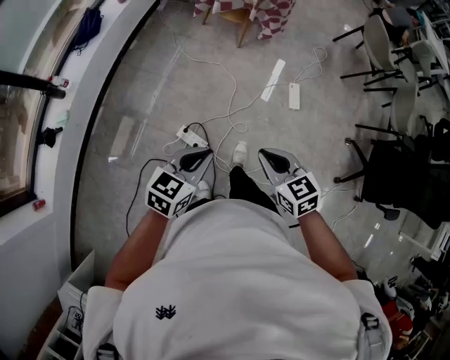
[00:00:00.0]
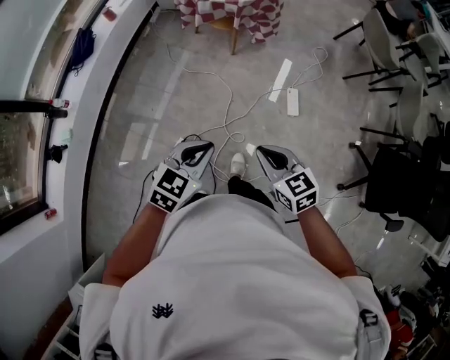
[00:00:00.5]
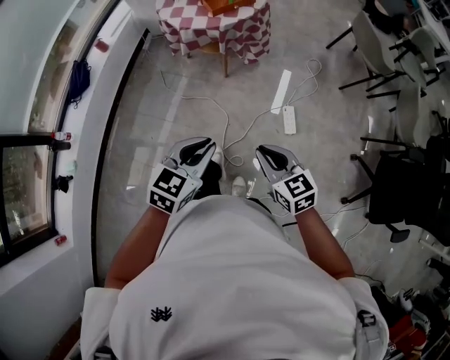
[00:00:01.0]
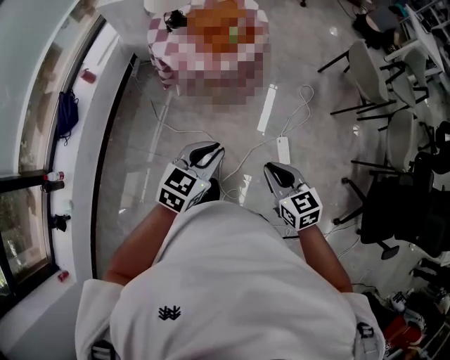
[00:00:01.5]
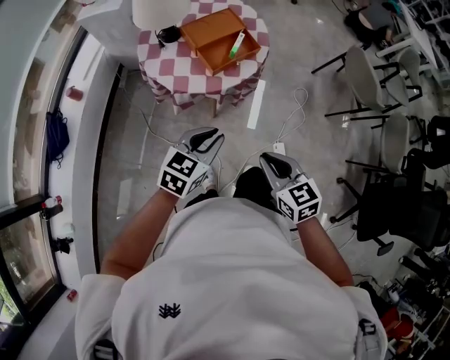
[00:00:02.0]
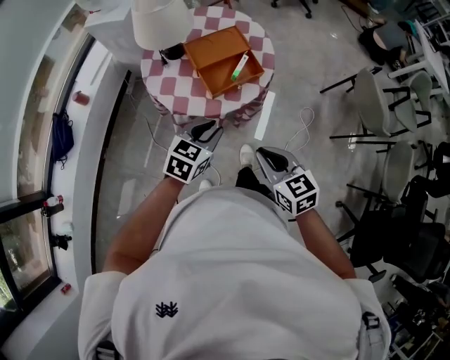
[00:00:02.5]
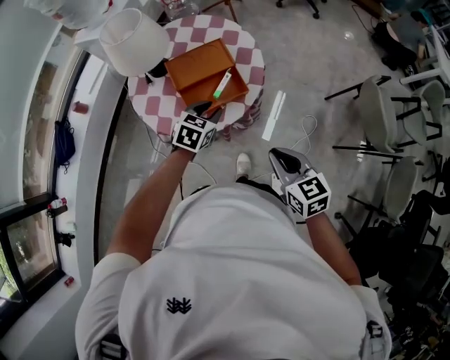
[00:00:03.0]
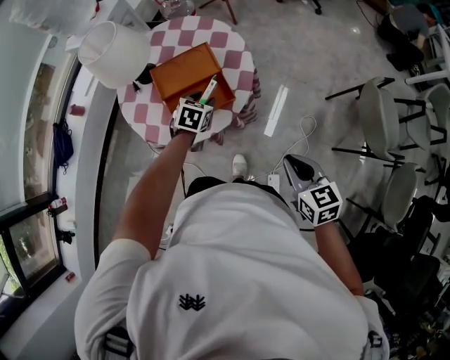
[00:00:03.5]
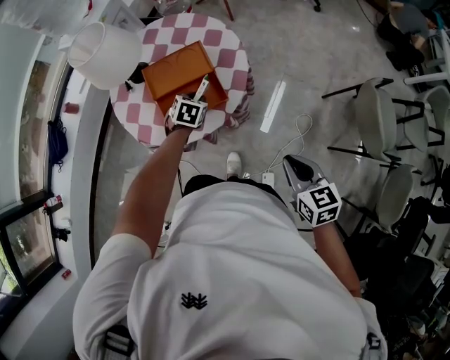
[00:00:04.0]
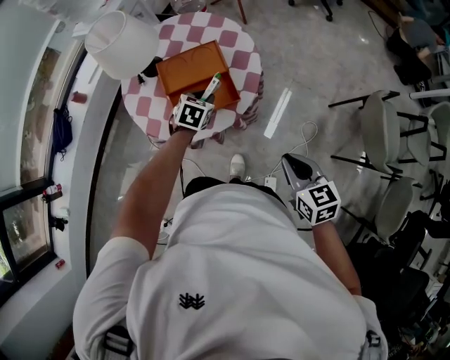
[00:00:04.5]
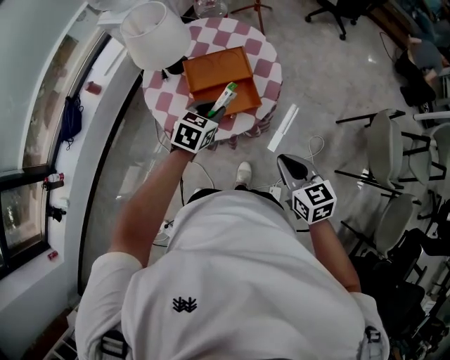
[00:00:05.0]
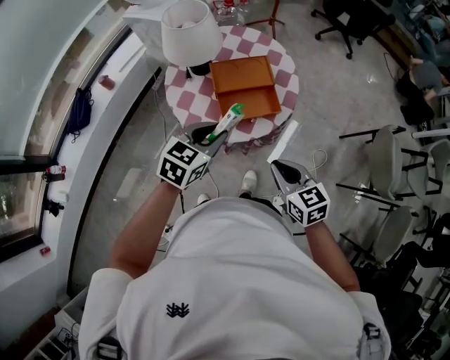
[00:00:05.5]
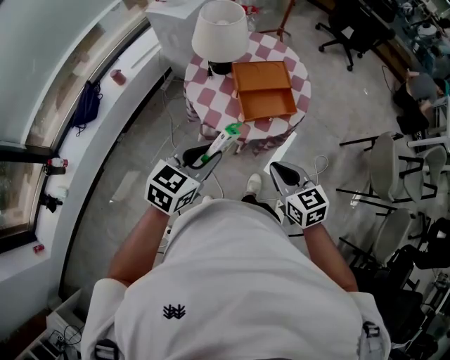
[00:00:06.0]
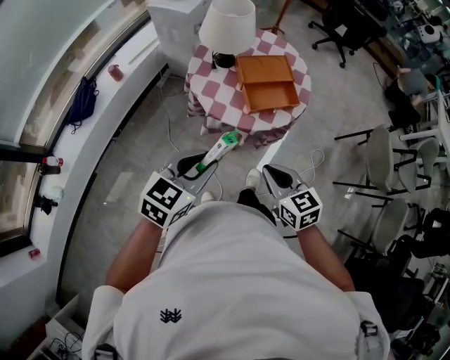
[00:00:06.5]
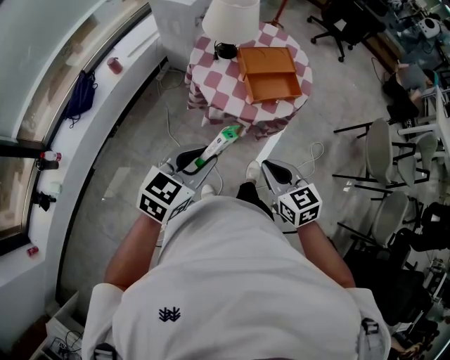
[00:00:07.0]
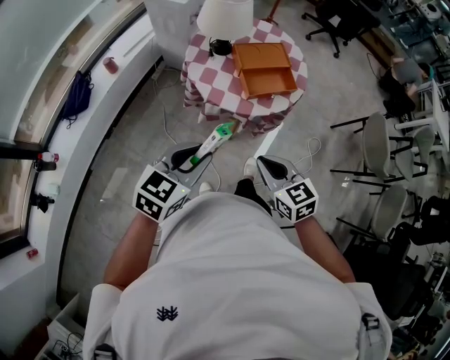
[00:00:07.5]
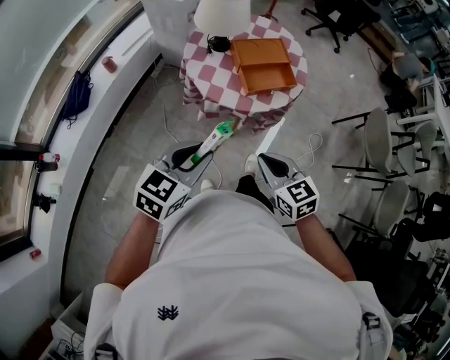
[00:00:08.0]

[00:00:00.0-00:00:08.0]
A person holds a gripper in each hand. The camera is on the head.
00:00:00.0 to 00:00:02.0: Both grippers are carried forward, roughly 60 cm.
00:00:02.0 to 00:00:04.0: The left gripper heads forward and downward, covering some 40 cm, and turns by some 40 degrees, while the right gripper moves to the right and forward, about 40 cm.
00:00:04.0 to 00:00:06.0: The right gripper goes about 30 cm to the left. Meanwhile the left gripper moves backward, upward and to the left, roughly 40 cm, and changes its angle by about 30 degrees.
00:00:06.0 to 00:00:08.0: Both grippers move backward and to the left, roughly 10 cm.

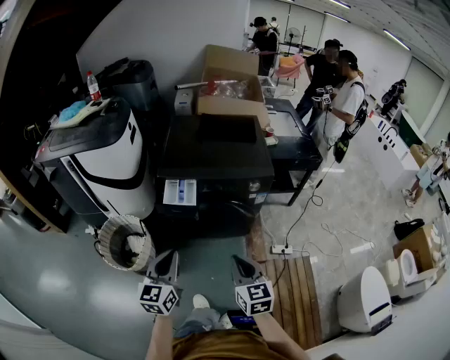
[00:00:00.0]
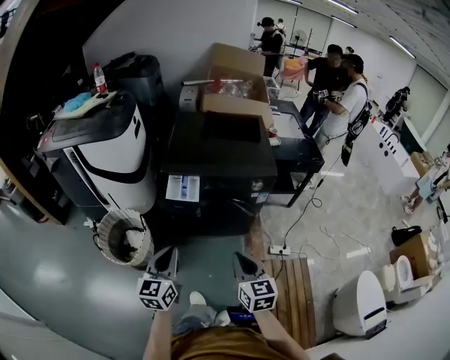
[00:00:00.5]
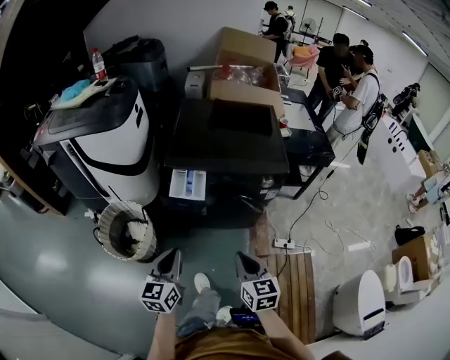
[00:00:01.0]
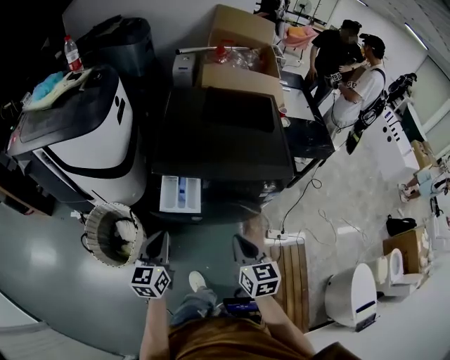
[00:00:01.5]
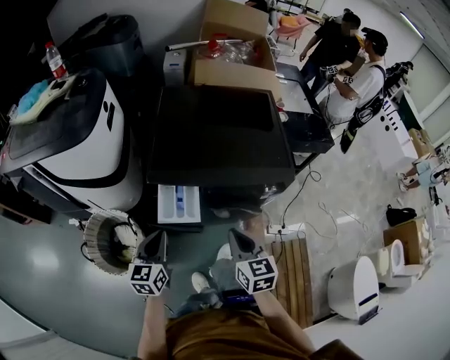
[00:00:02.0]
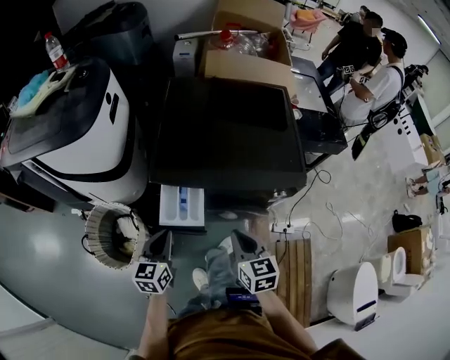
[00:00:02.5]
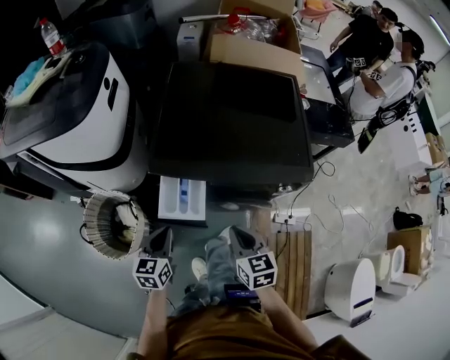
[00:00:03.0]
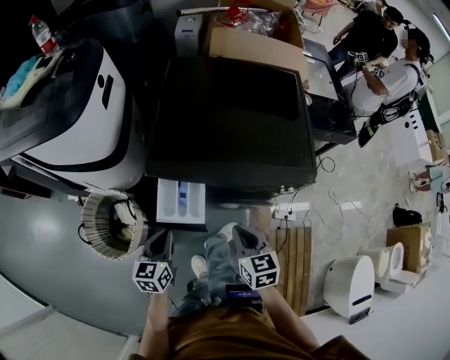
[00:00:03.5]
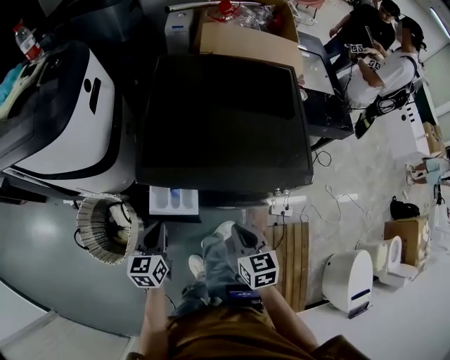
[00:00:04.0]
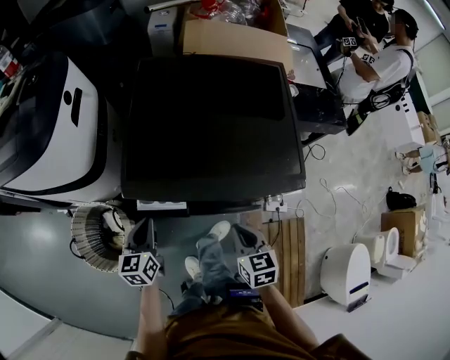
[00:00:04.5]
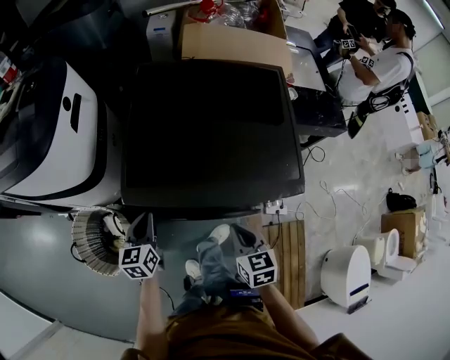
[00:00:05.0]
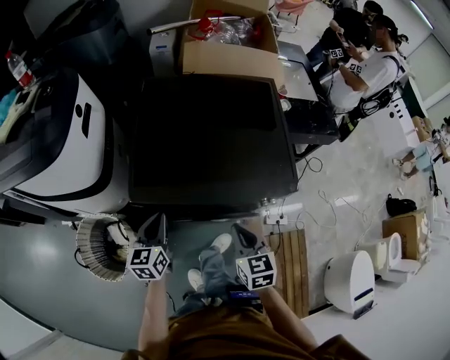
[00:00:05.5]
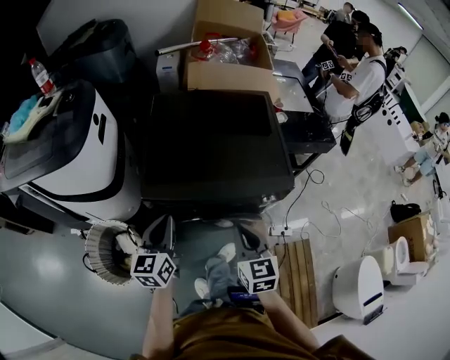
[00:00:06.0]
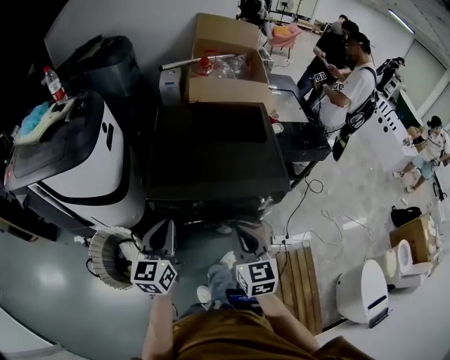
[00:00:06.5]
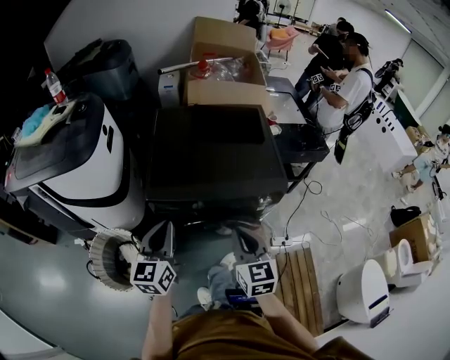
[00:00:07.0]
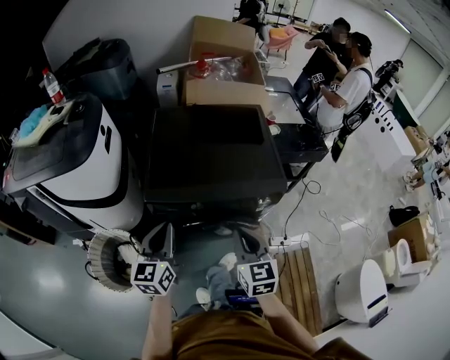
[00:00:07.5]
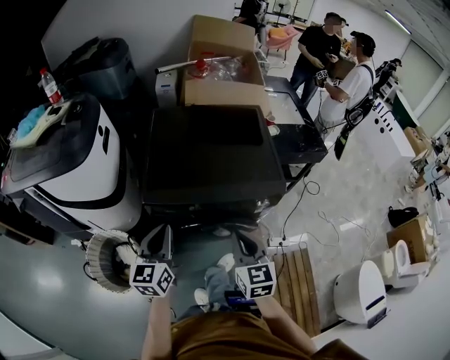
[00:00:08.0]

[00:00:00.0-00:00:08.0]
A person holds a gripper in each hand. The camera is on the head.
00:00:00.0 to 00:00:02.0: The right gripper is displaced forward by roughly 25 cm; the left gripper shifts about 25 cm forward and downward.
00:00:02.0 to 00:00:04.0: Both grippers travel together downward and forward, roughly 10 cm.
00:00:04.0 to 00:00:06.0: The grippers both shift upward by some 10 cm.
00:00:06.0 to 00:00:08.0: The left gripper changes place by roughly 5 cm.

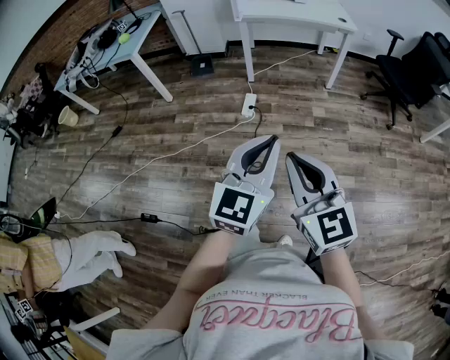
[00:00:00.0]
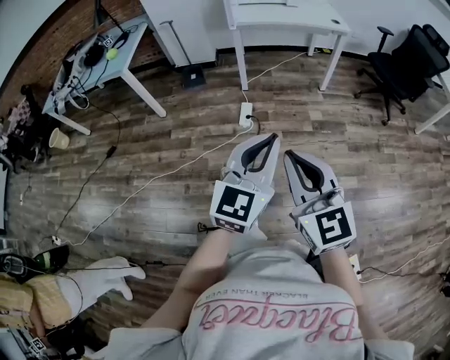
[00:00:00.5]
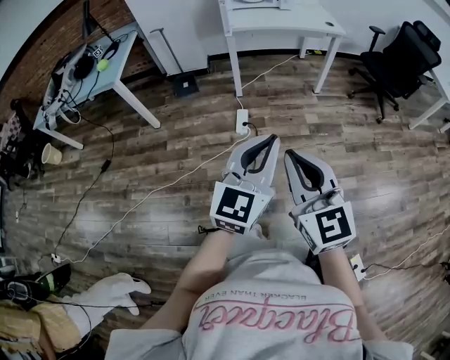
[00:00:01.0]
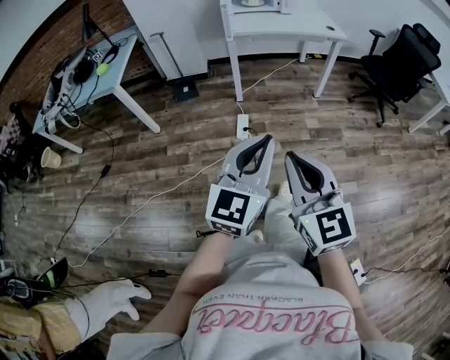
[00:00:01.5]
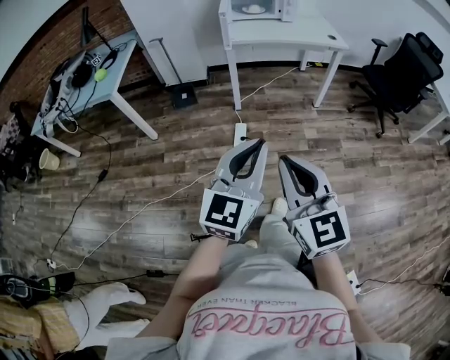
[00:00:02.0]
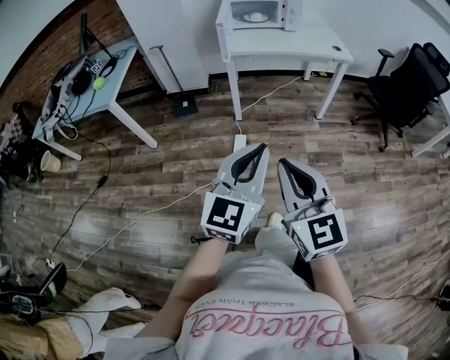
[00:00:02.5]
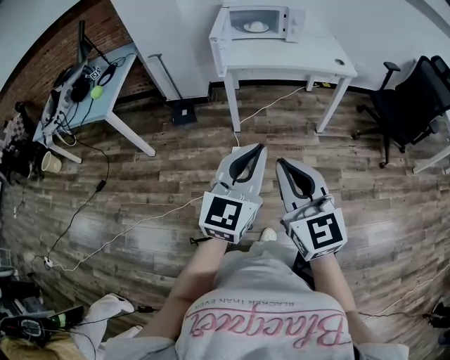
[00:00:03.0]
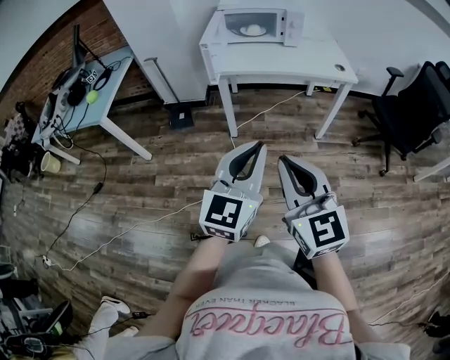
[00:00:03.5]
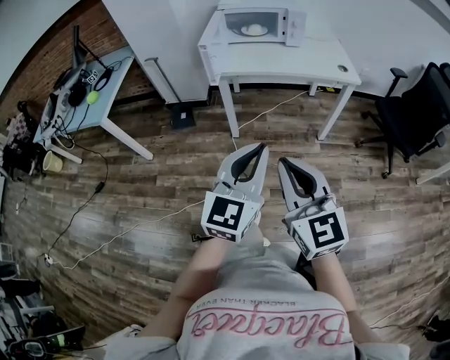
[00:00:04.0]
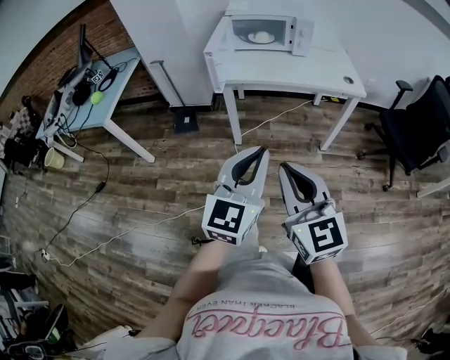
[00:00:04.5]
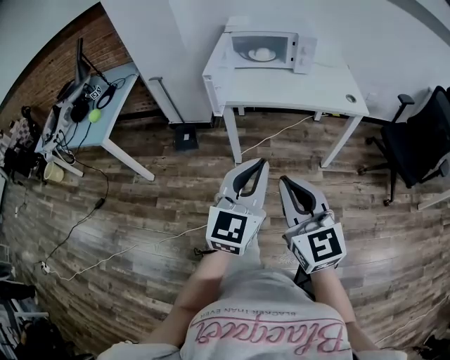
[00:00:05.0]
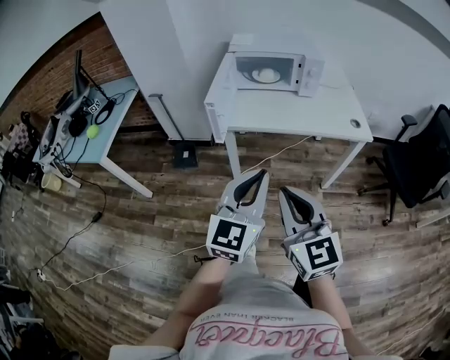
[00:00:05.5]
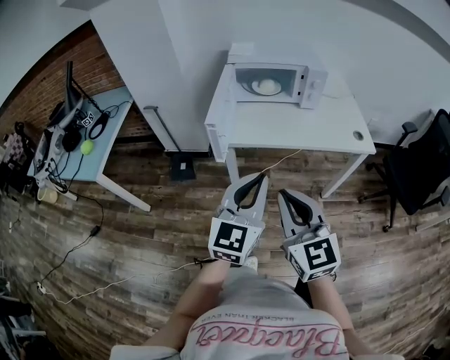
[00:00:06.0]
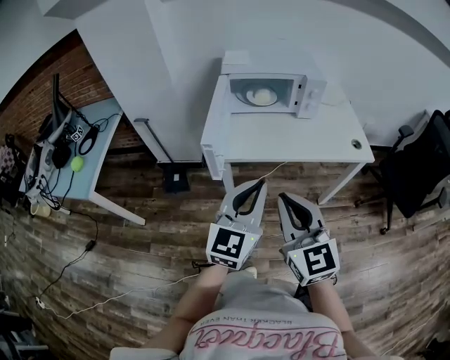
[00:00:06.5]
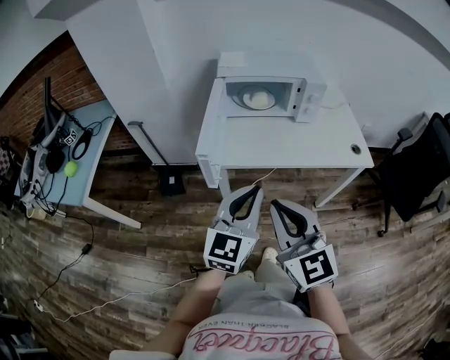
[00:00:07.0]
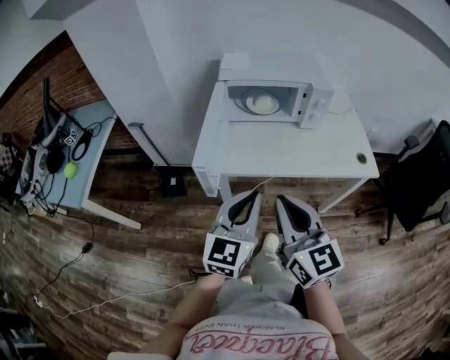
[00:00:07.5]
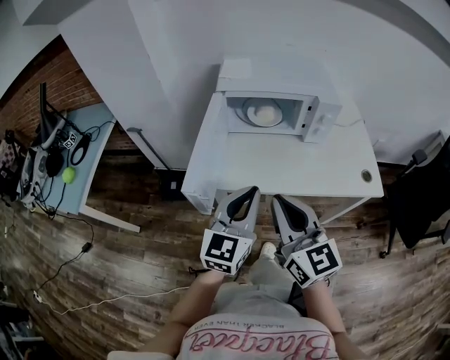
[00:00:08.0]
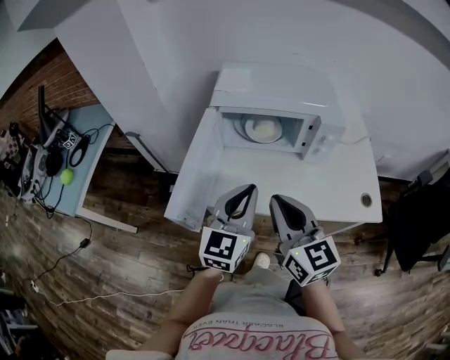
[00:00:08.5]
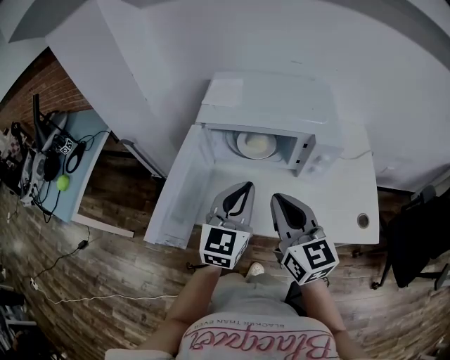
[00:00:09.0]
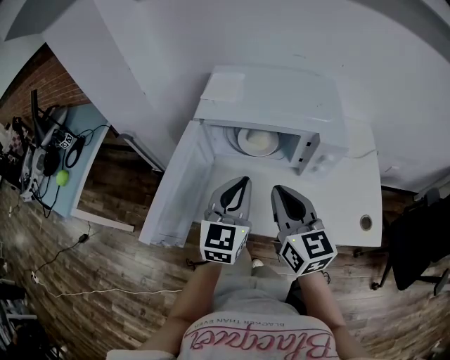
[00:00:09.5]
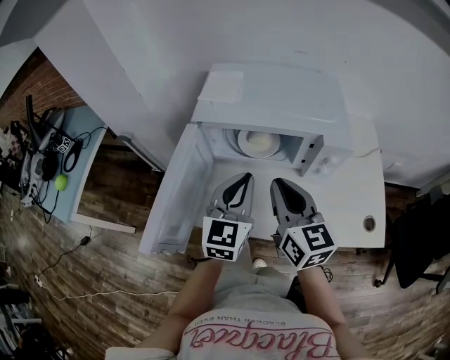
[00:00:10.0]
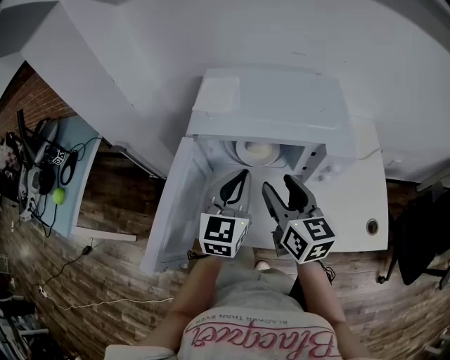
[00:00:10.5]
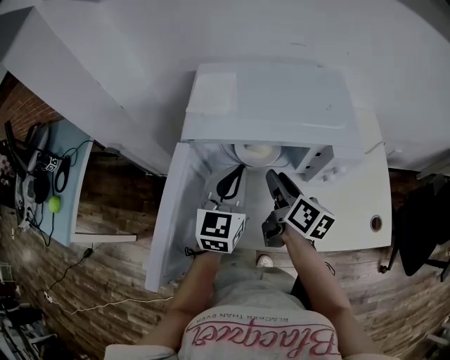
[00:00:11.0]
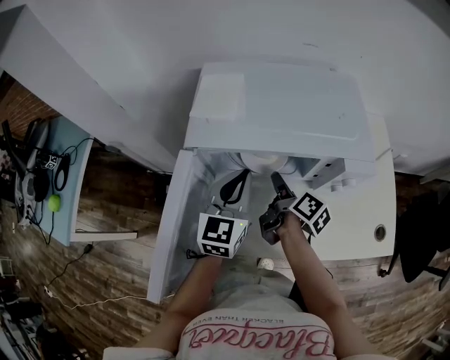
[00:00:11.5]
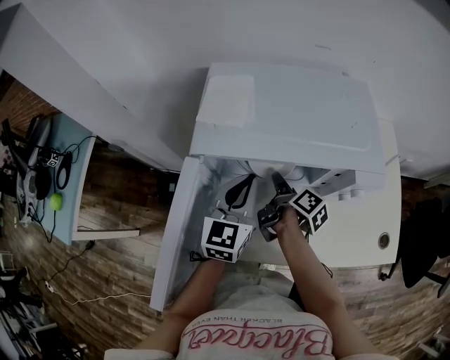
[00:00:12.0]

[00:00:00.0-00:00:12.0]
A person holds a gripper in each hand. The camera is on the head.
00:00:00.0 to 00:00:02.0: Both grippers travel together forward and to the left, some 20 cm.
00:00:02.0 to 00:00:04.0: The two grippers go about 30 cm forward and to the right.
00:00:04.0 to 00:00:06.0: The two grippers go about 25 cm forward.
00:00:06.0 to 00:00:08.0: Both grippers move forward, approximately 20 cm.
00:00:08.0 to 00:00:10.0: The left gripper is displaced forward by some 20 cm; the right gripper goes about 25 cm forward and to the right.
00:00:10.0 to 00:00:12.0: The left gripper heads forward and downward, covering roughly 10 cm. Meanwhile the right gripper is displaced downward and forward by about 25 cm, twists roughly 70 degrees clockwise, seen from behind, and opens.
